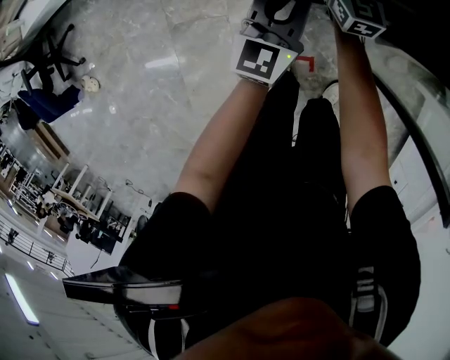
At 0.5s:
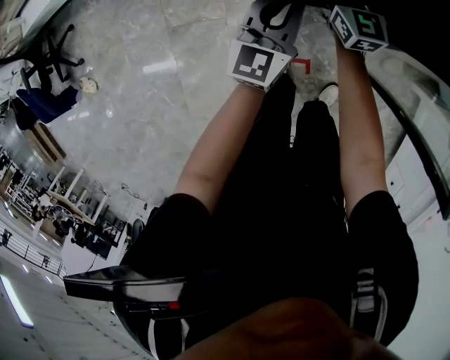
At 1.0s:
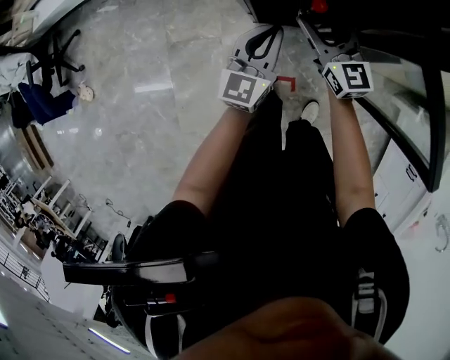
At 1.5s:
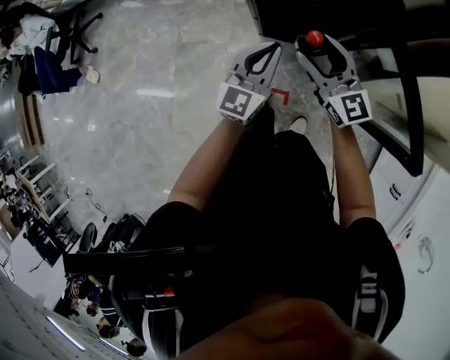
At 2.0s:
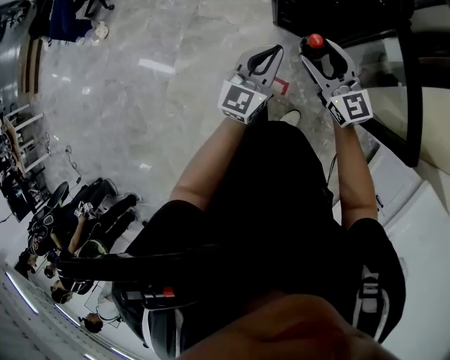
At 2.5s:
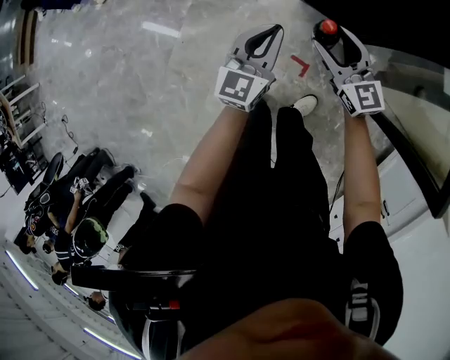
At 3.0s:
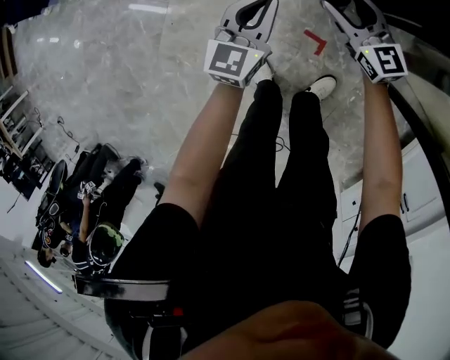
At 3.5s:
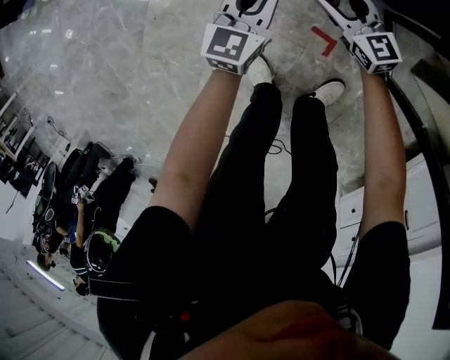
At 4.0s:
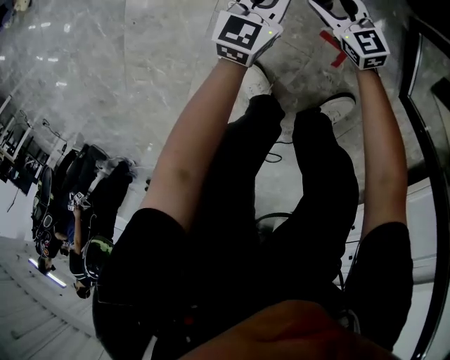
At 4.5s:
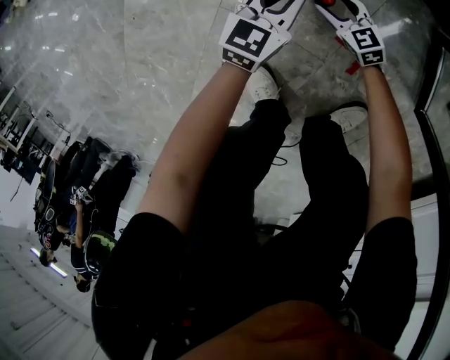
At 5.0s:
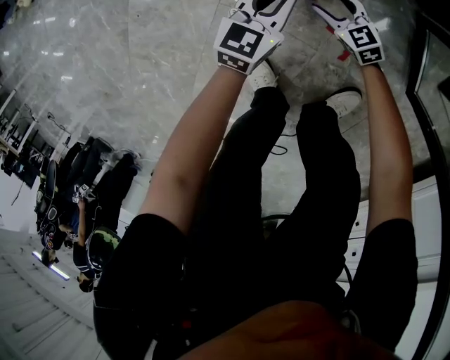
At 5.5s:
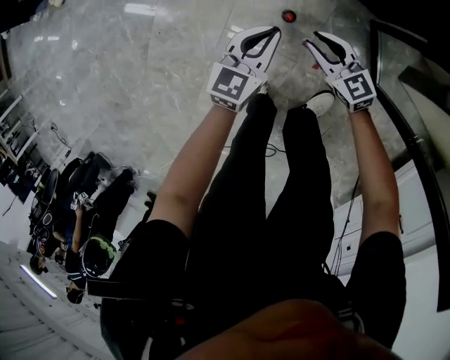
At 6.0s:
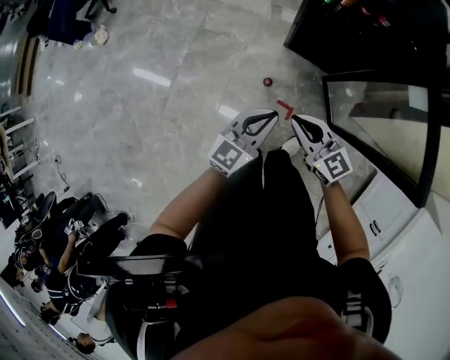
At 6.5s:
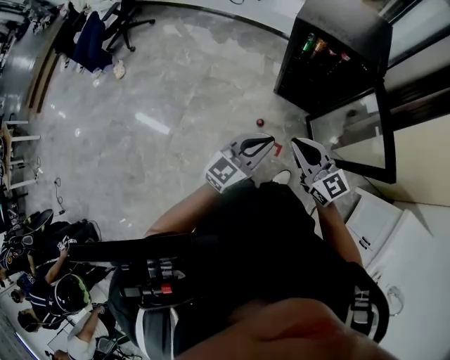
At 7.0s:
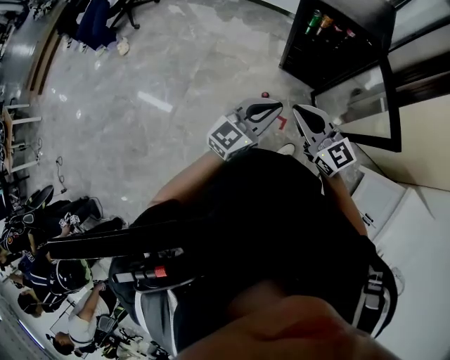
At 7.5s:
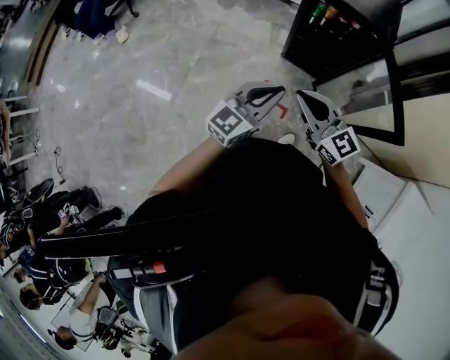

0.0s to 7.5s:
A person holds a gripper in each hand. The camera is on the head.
0.0s to 2.0s: The right gripper changes place by roughly 40 cm, and rotates approximately 40 degrees; the left gripper ends up roughly 30 cm from where it was, and swivels roughly 20 degrees.
2.0s to 4.0s: Both grippers travel together downward, some 70 cm. The right gripper rotates some 30 degrees, while the left gripper turns by roughly 20 degrees.
4.0s to 5.5s: Both grippers move upward, some 25 cm. The right gripper closes up.
5.5s to 7.5s: Both grippers move upward, approximately 60 cm. The left gripper swivels roughly 30 degrees, while the right gripper swivels approximately 20 degrees, and closes its fingers.

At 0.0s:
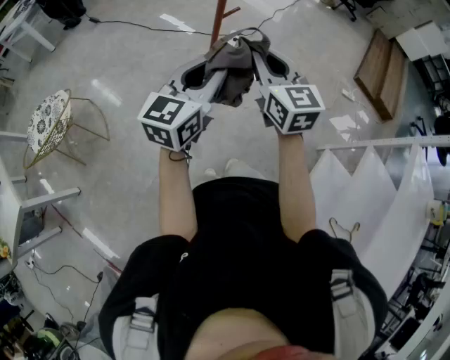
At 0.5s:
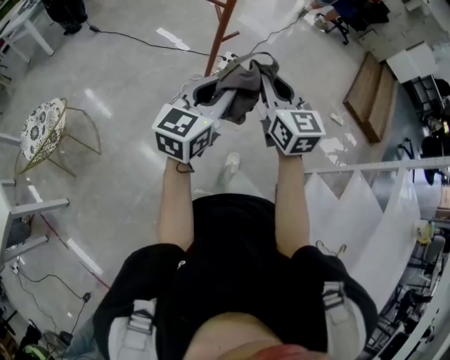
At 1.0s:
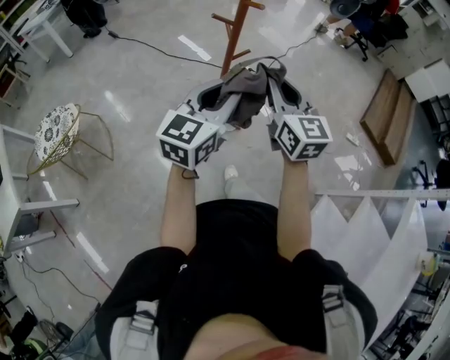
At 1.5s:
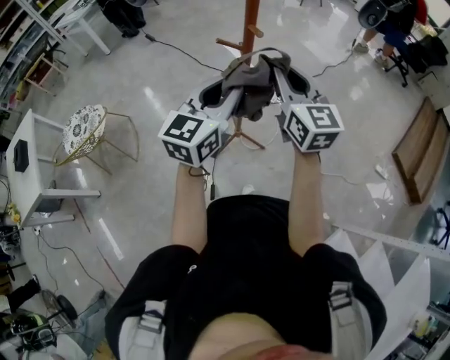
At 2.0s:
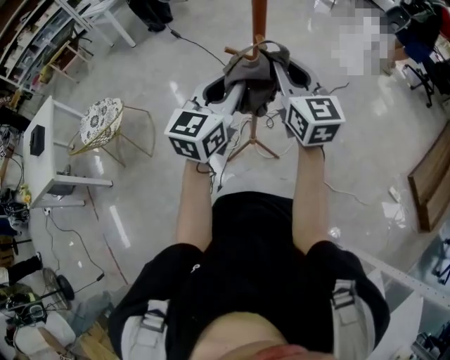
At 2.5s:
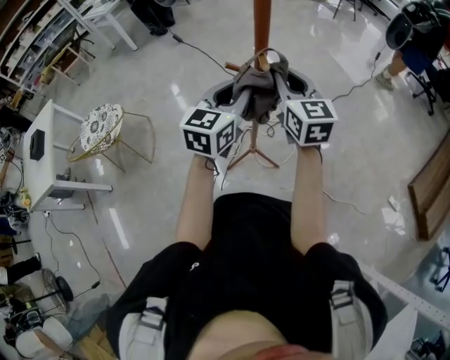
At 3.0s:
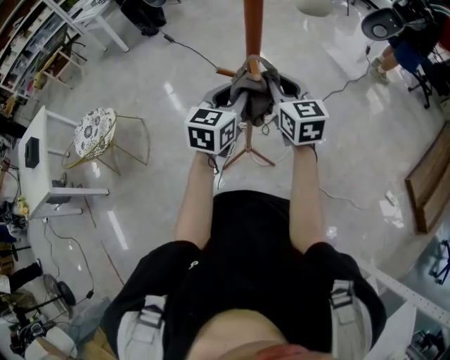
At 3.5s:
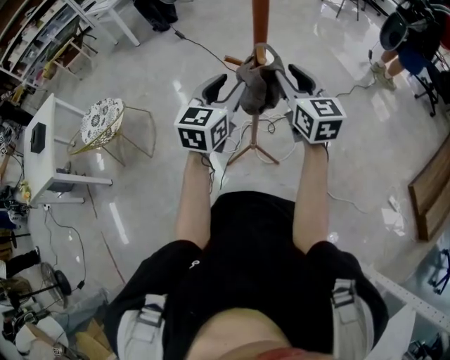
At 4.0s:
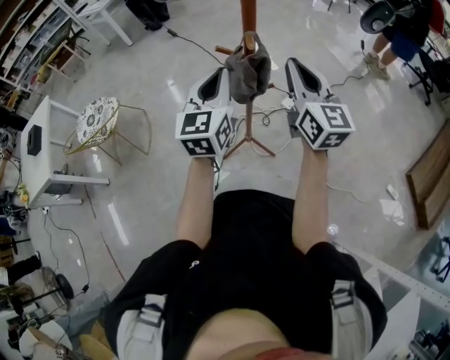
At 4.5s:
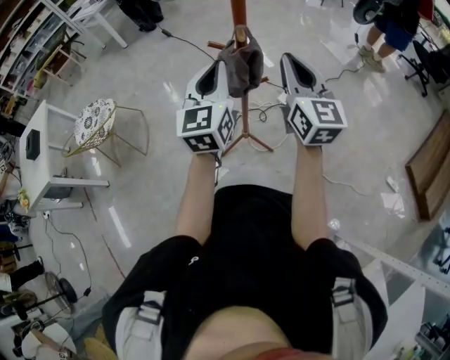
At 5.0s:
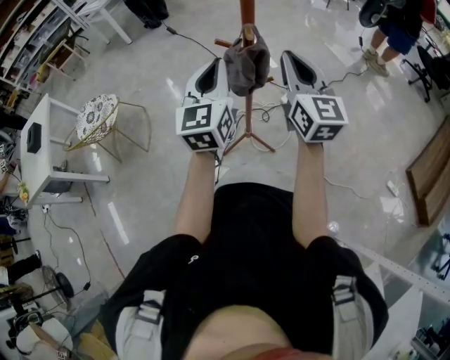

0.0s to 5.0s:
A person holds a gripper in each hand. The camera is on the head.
0.0s to 2.5s: The right gripper ends up approximately 35 cm from where it was, and turns by about 20 degrees. Meanwhile the left gripper changes place by approximately 30 cm, and turns by about 30 degrees.
2.5s to 5.0s: The right gripper is displaced backward by some 5 cm, and opens and closes again, while the left gripper shifts by about 5 cm, changes its angle by roughly 20 degrees, and opens, then closes again.

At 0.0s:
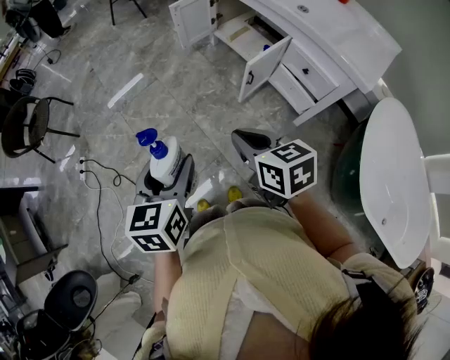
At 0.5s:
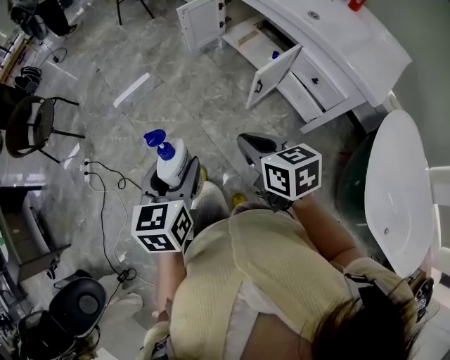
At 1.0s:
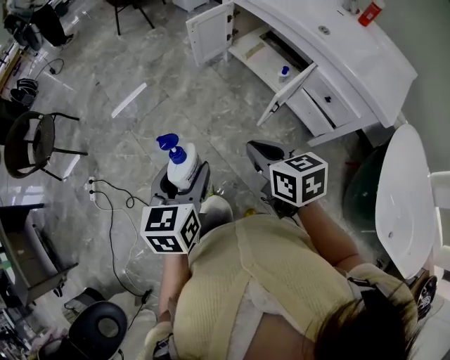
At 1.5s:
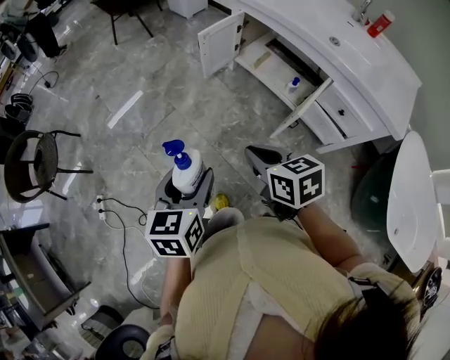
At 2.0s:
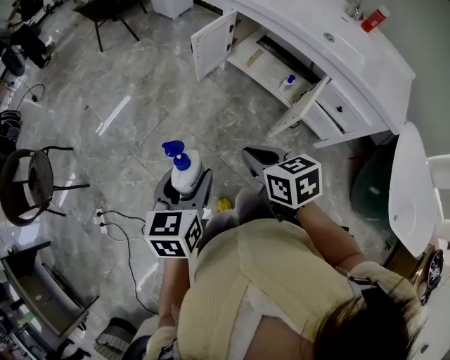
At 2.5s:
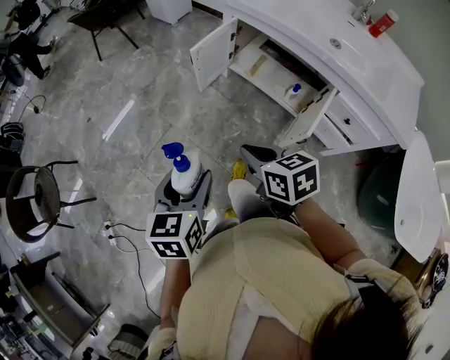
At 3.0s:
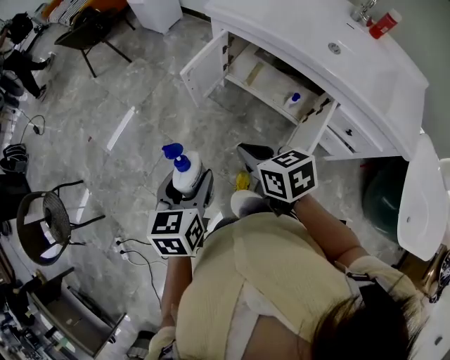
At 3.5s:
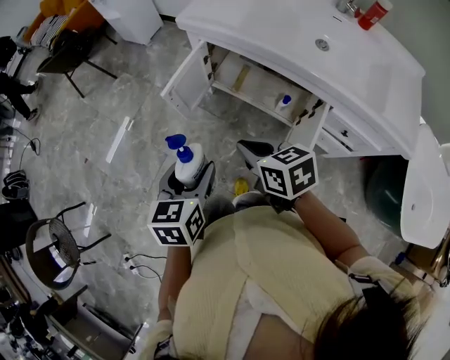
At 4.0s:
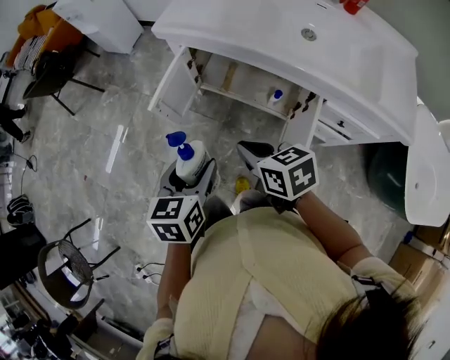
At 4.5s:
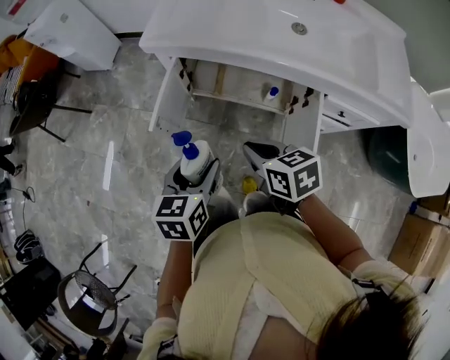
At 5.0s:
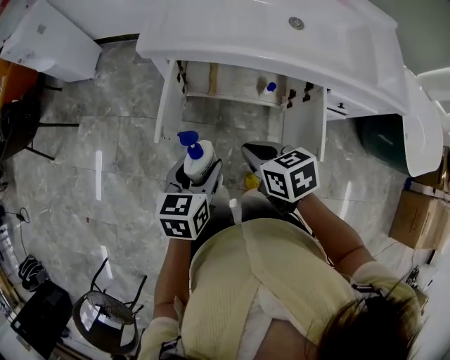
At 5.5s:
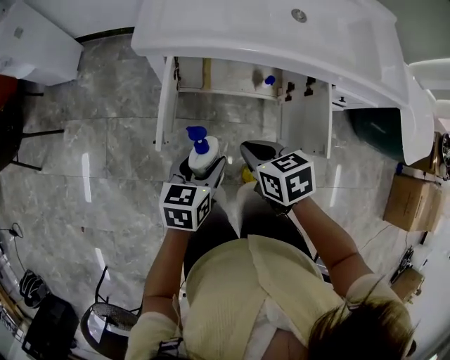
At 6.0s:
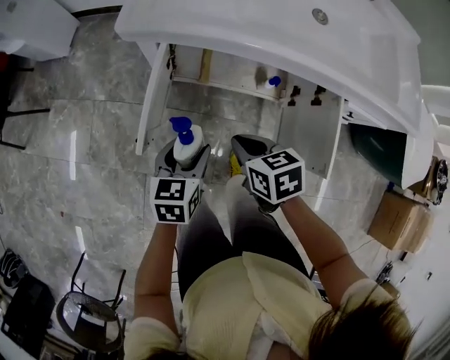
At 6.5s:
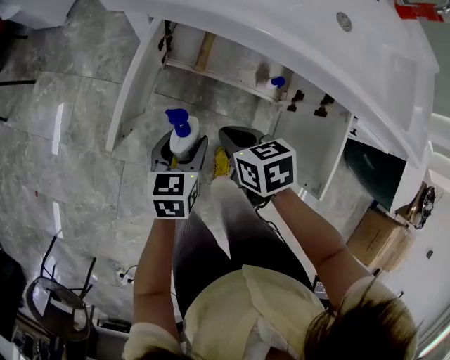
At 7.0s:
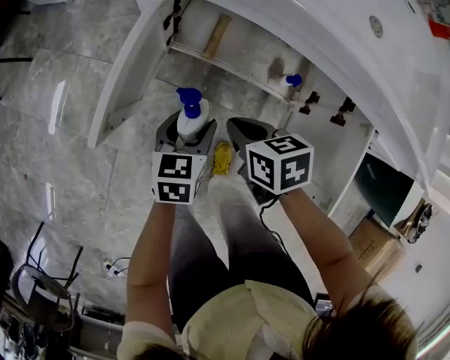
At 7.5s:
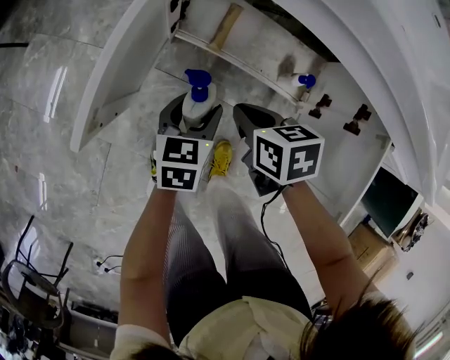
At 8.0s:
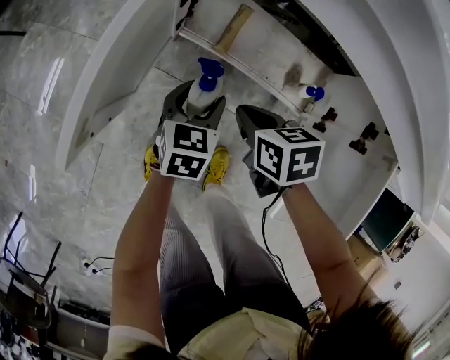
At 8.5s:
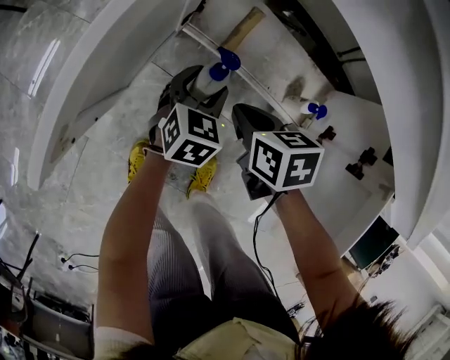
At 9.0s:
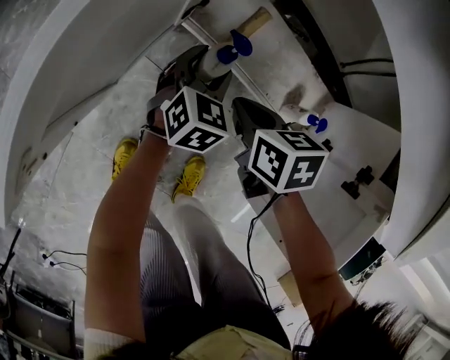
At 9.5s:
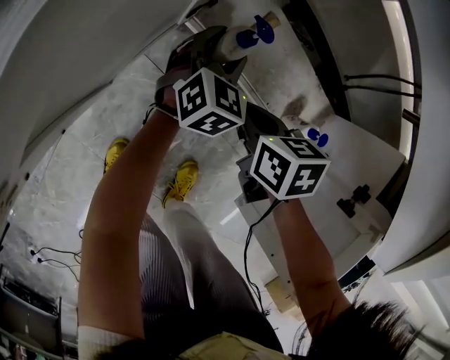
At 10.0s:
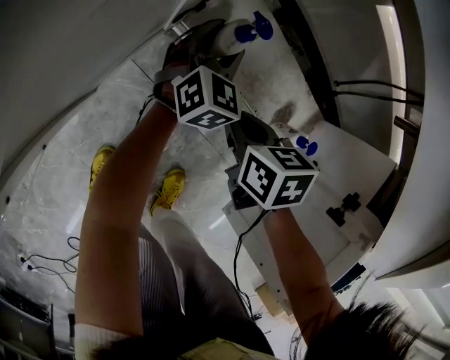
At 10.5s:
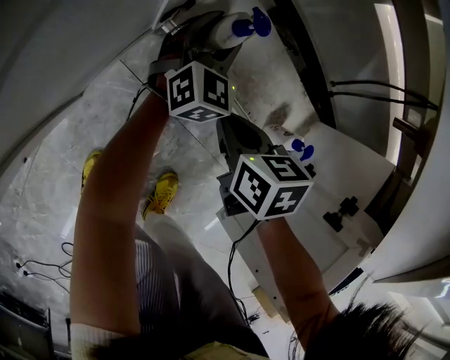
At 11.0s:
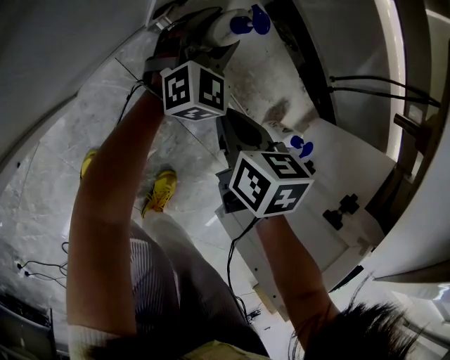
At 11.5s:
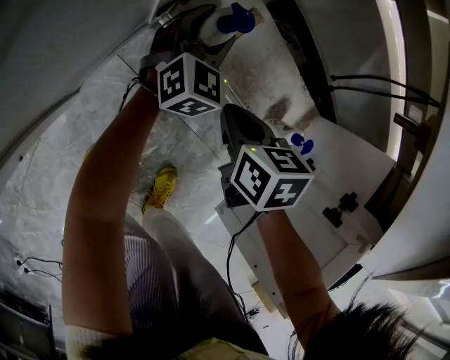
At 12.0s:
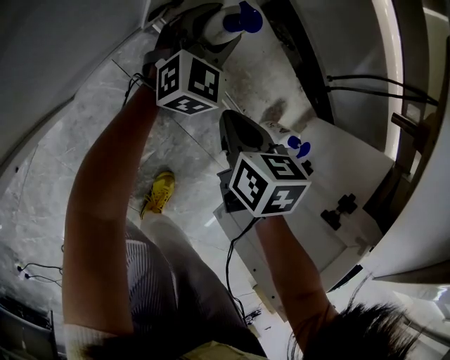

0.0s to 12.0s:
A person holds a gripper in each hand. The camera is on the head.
0.0s to 2.0s: The grippers both shift forward and to the left by some 30 cm.
2.0s to 4.0s: The two grippers go roughly 35 cm forward and to the right.
4.0s to 6.0s: The two grippers go approximately 20 cm downward. The right gripper swivels approximately 30 degrees; the left gripper rotates approximately 20 degrees.
6.0s to 8.0s: The two grippers go roughly 25 cm downward.
8.0s to 10.0s: The right gripper goes approximately 10 cm downward and forward; the left gripper shifts approximately 20 cm forward and downward, and swivels roughly 30 degrees.
10.0s to 12.0s: The grippers make only small movements.

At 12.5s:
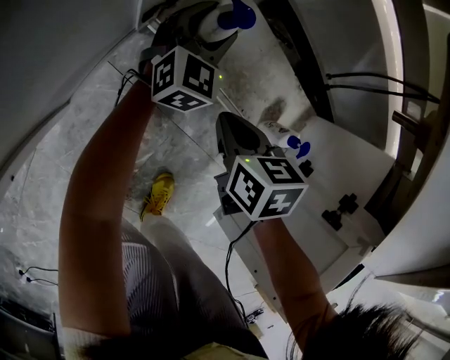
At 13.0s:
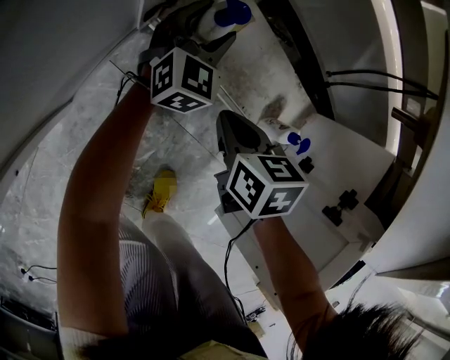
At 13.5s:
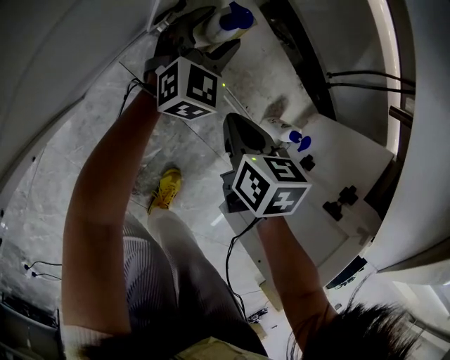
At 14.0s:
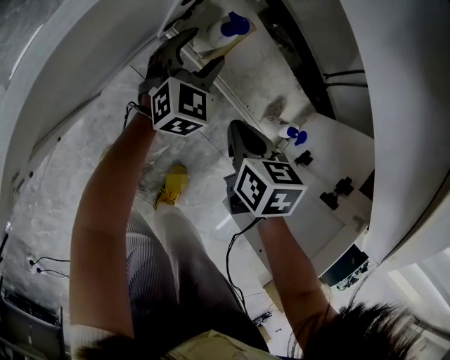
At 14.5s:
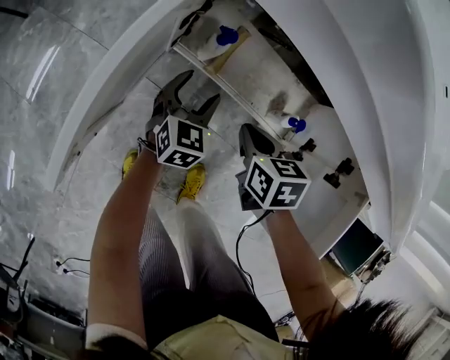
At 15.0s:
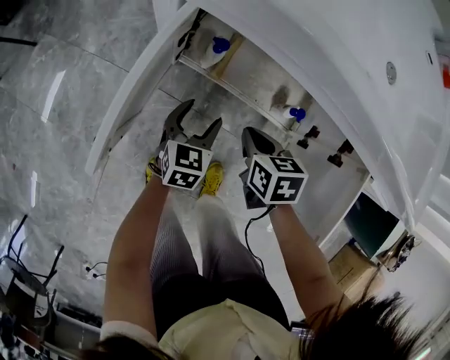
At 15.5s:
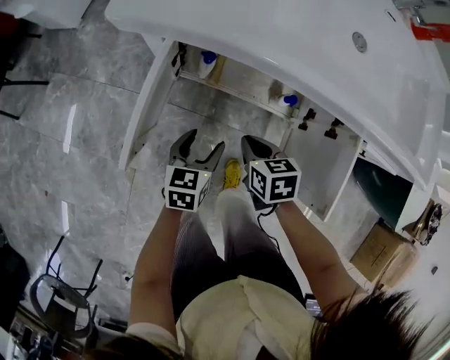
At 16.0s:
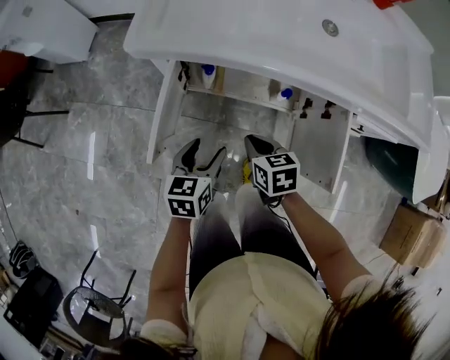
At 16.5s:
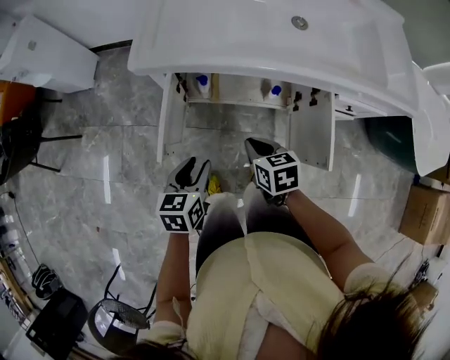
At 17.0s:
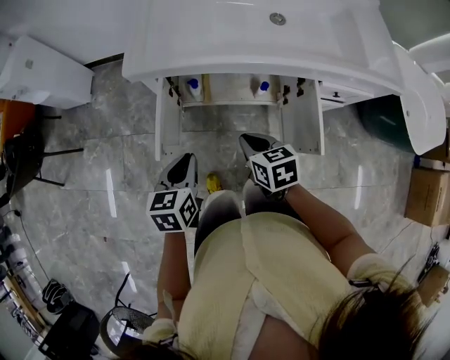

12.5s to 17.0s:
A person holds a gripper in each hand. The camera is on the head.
12.5s to 14.5s: The left gripper heads backward and upward, covering some 15 cm; the right gripper travels upward by about 10 cm.
14.5s to 17.0s: The grippers both shift upward and backward by about 40 cm. The left gripper changes its angle by about 20 degrees, and closes up.
